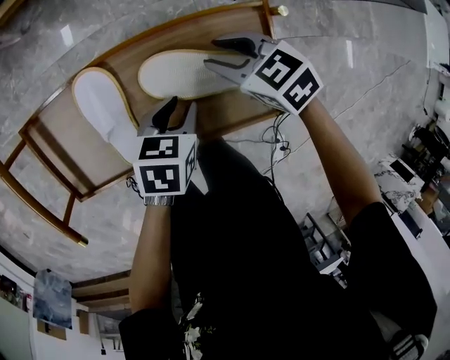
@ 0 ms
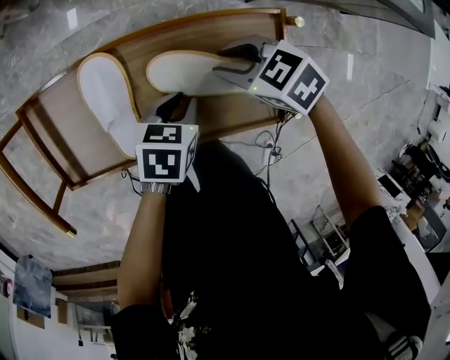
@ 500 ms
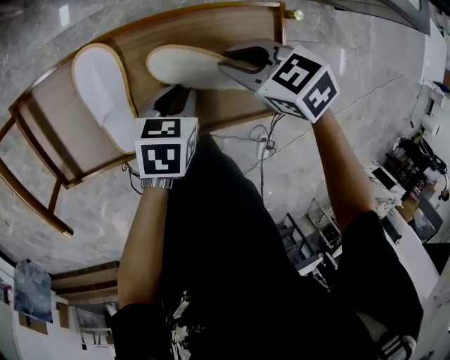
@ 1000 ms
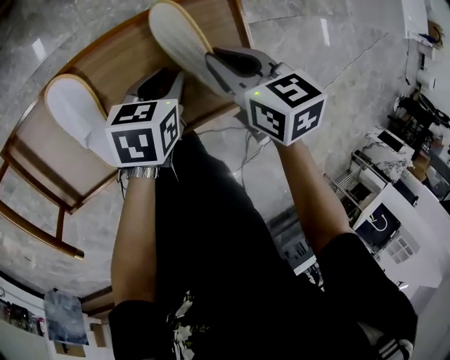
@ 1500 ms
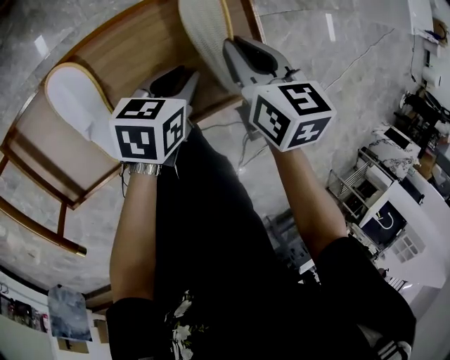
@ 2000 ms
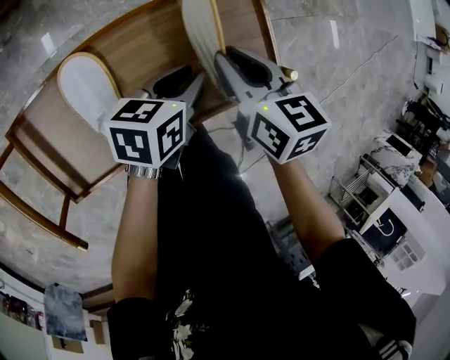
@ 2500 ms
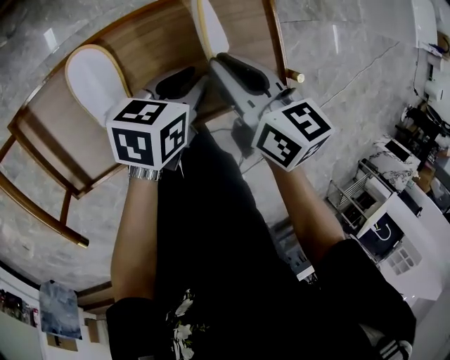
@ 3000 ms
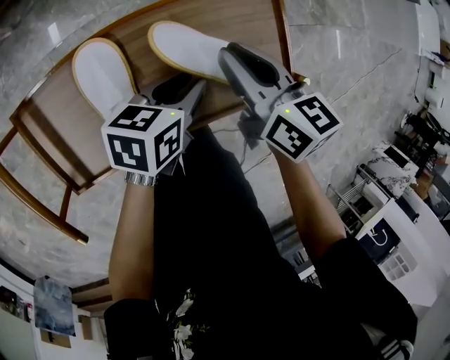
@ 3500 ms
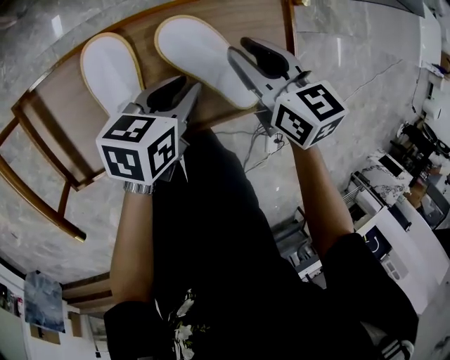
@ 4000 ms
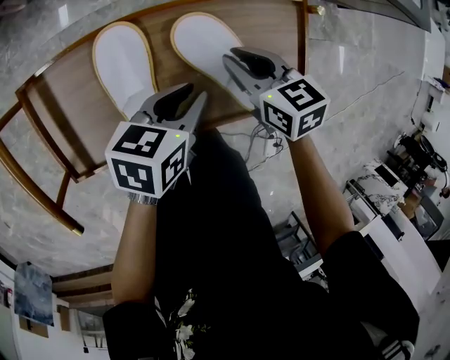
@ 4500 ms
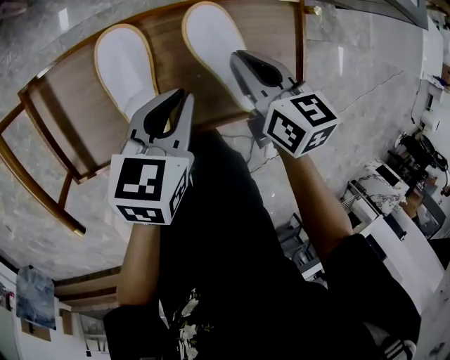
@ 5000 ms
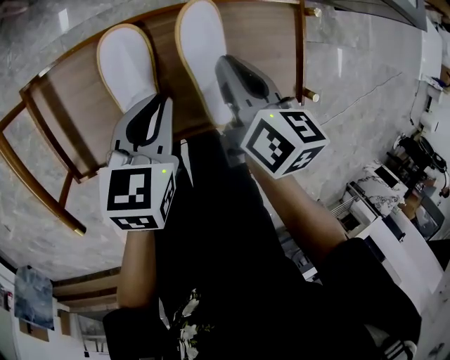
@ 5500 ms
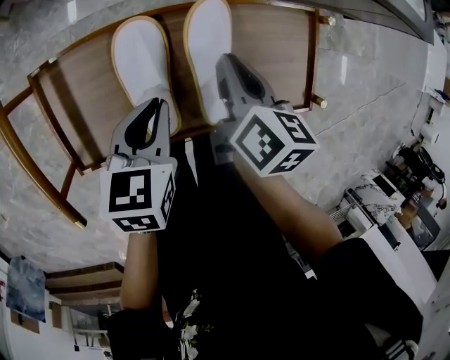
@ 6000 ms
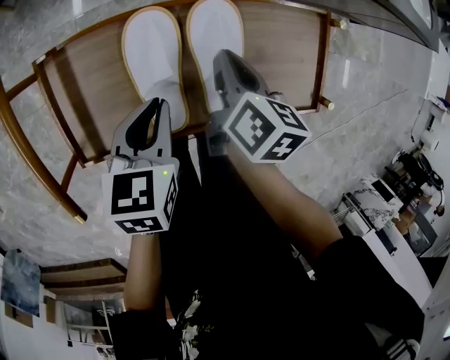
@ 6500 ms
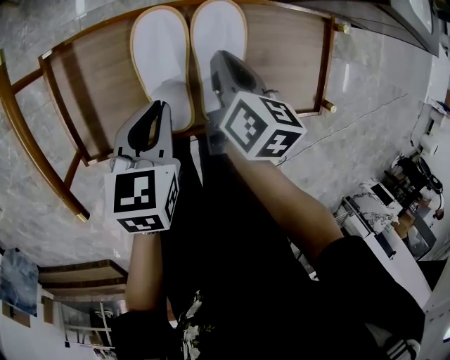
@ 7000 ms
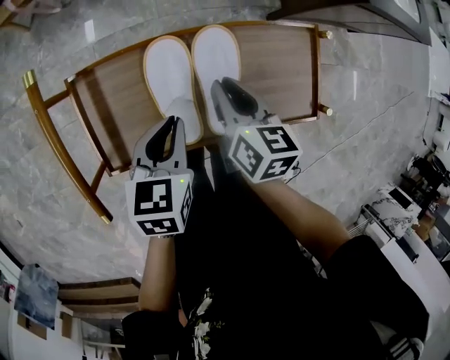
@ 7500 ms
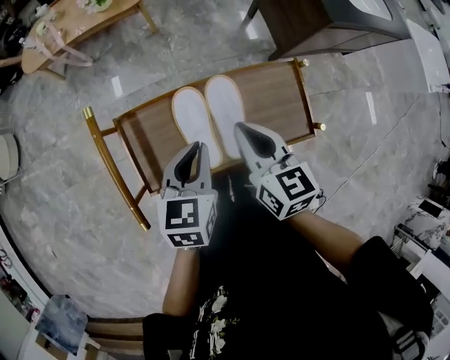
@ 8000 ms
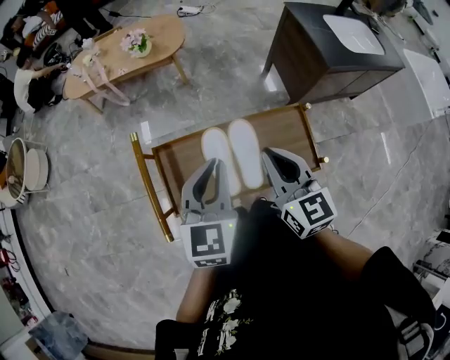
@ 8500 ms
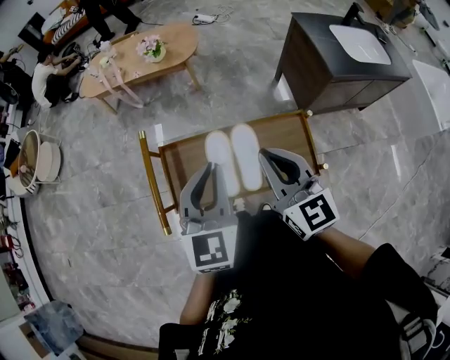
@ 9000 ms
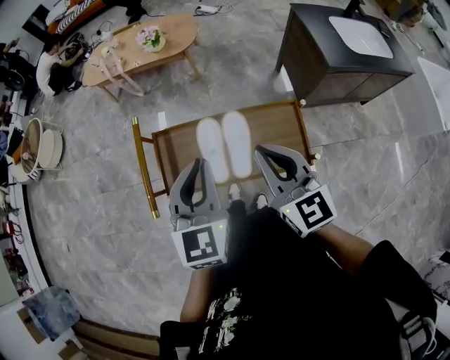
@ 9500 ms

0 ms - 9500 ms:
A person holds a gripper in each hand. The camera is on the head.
0 ms - 2000 ms: The right gripper moves some 10 cm, swivels roughly 50 degrees, and closes.
2000 ms - 4000 ms: Both grippers move to the left, approximately 5 cm. The right gripper turns by about 20 degrees.
4000 ms - 5500 ms: The right gripper moves roughly 5 cm, turns by approximately 20 degrees, and closes. Meanwhile the left gripper travels to the left by roughly 10 cm, and changes its angle by roughly 20 degrees.
5500 ms - 7500 ms: The left gripper changes place by some 5 cm, while the right gripper is displaced to the left by about 5 cm.
7500 ms - 9500 ms: The grippers both shift upward by roughly 30 cm. The left gripper turns by approximately 40 degrees; the right gripper rotates some 50 degrees.

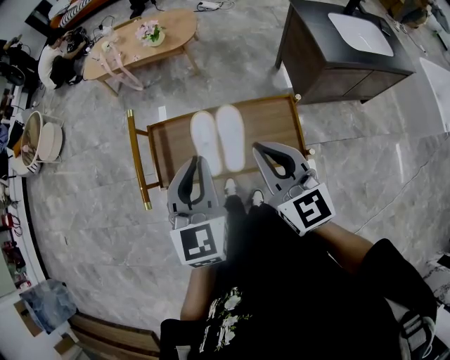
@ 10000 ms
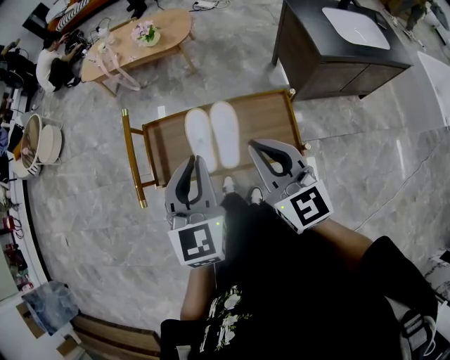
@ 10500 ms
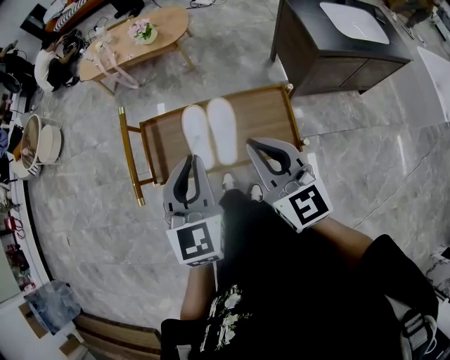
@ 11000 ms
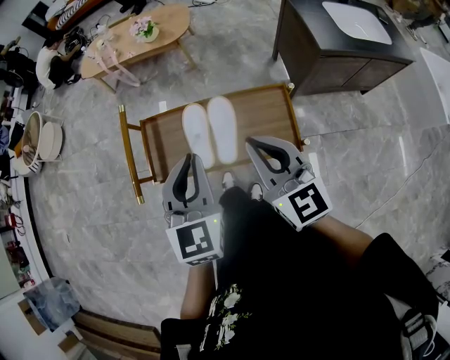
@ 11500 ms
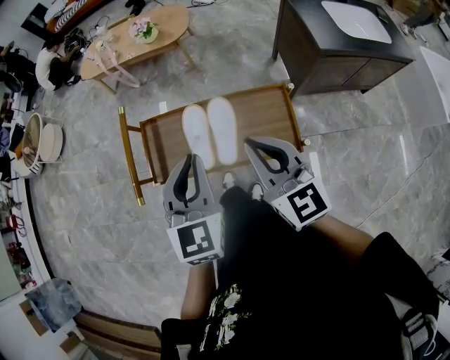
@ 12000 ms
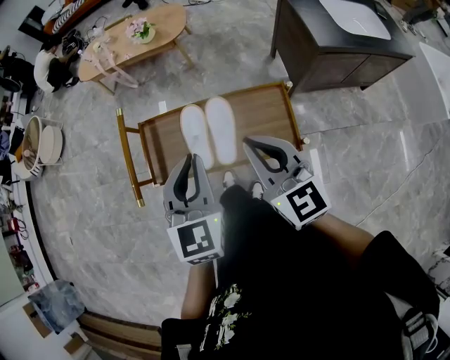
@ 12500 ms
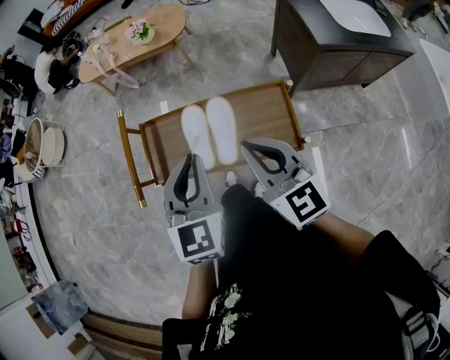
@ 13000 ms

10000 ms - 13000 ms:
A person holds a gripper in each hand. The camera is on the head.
10000 ms - 11500 ms: There are only small adjustments of the grippers.
11500 ms - 13000 ms: Both grippers stay put.

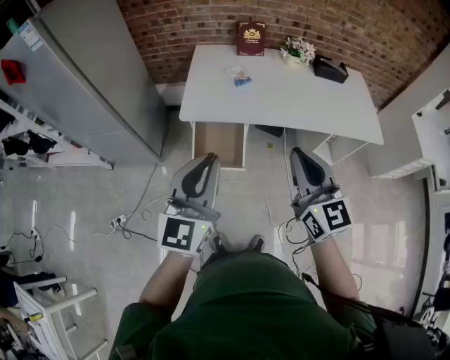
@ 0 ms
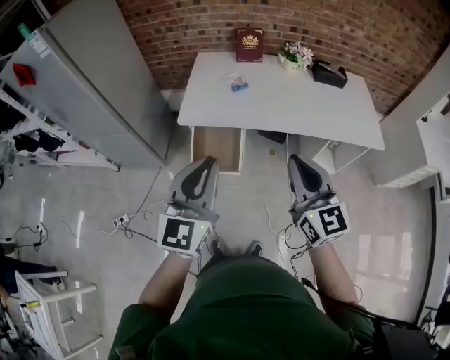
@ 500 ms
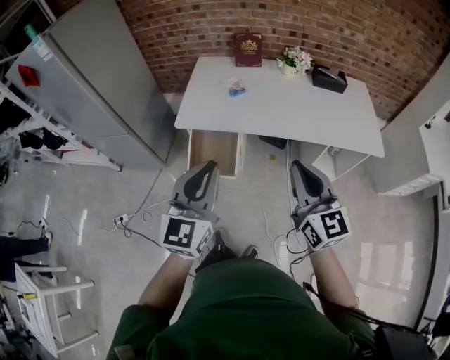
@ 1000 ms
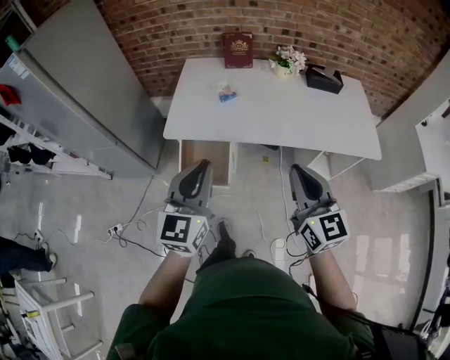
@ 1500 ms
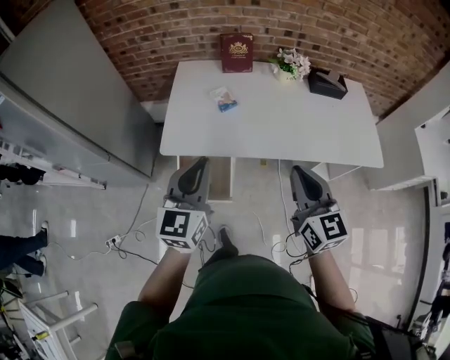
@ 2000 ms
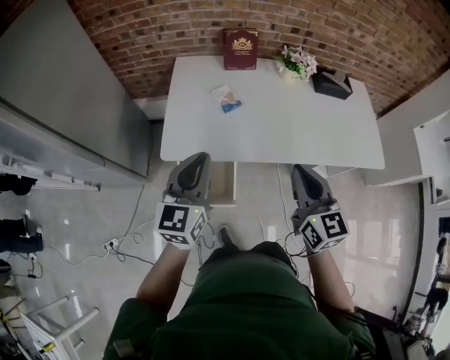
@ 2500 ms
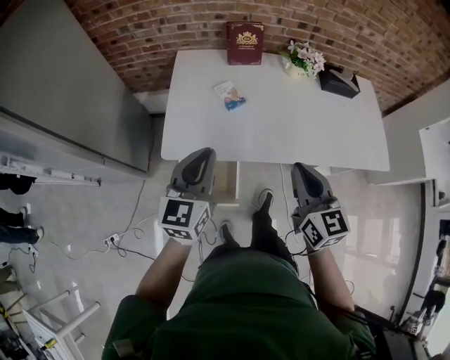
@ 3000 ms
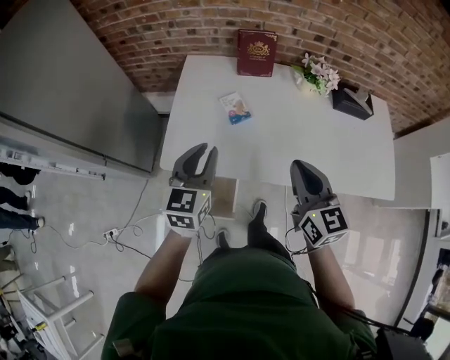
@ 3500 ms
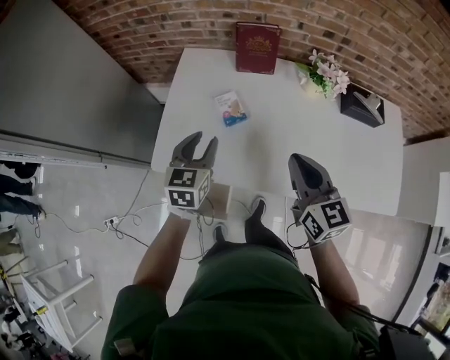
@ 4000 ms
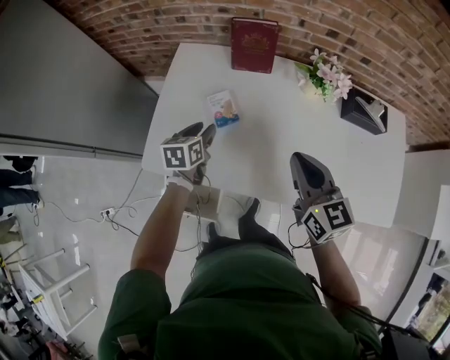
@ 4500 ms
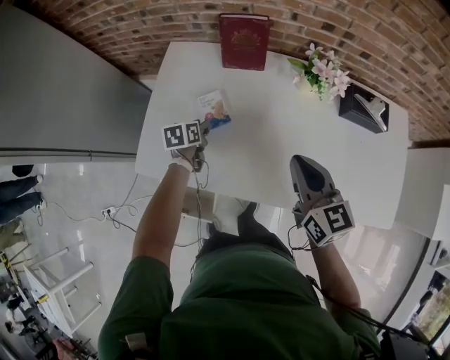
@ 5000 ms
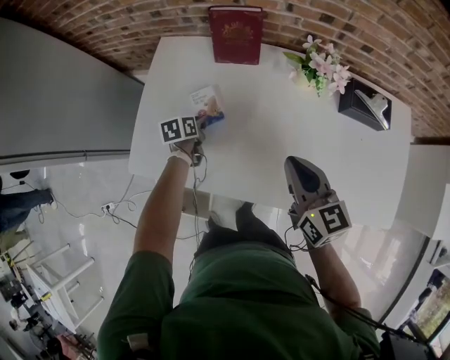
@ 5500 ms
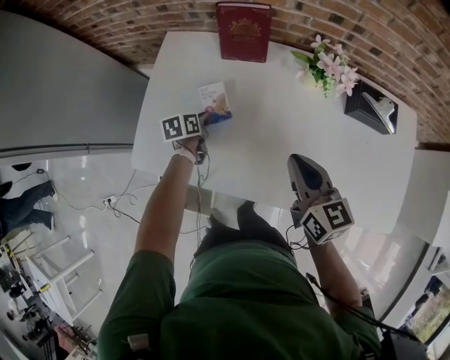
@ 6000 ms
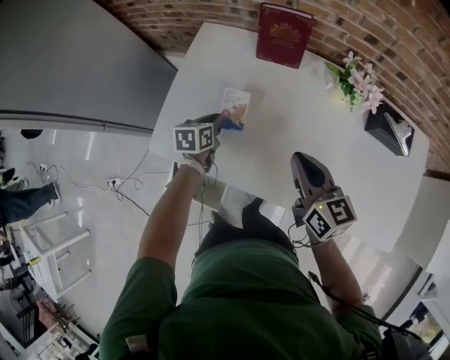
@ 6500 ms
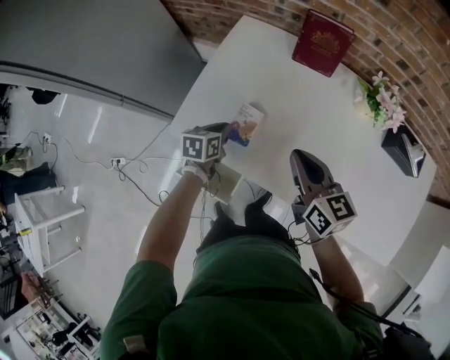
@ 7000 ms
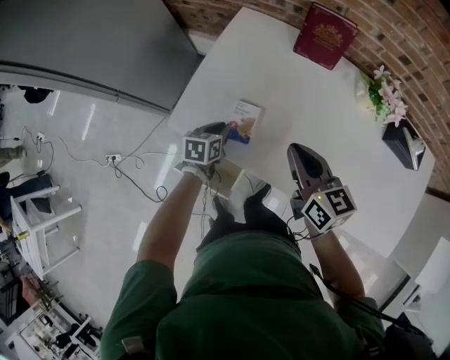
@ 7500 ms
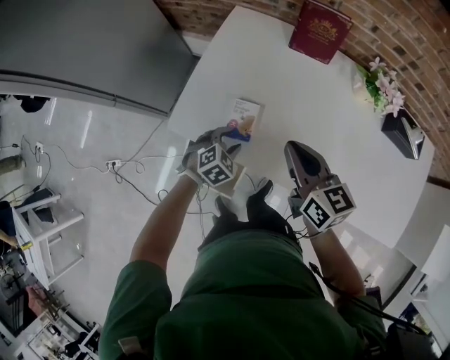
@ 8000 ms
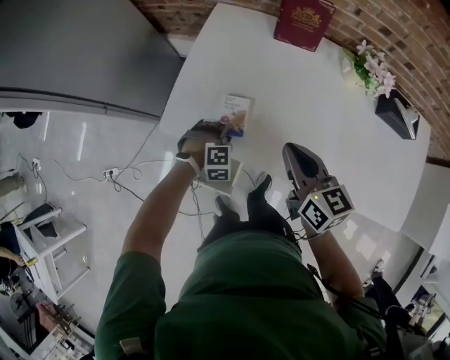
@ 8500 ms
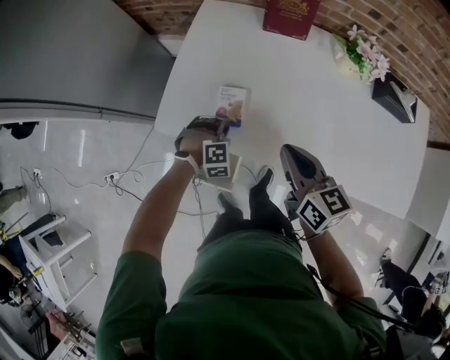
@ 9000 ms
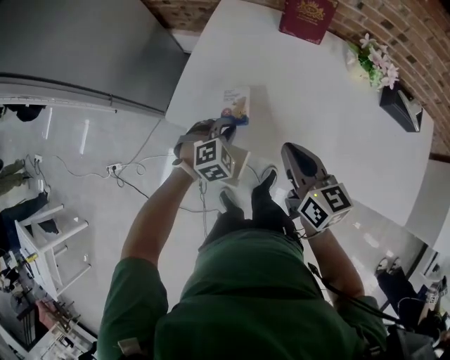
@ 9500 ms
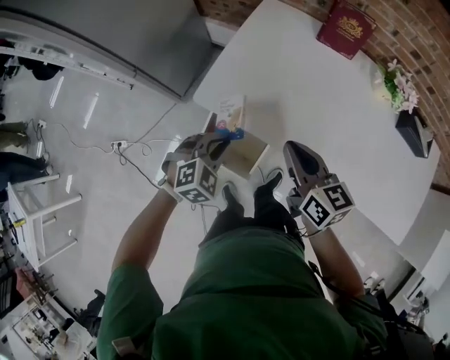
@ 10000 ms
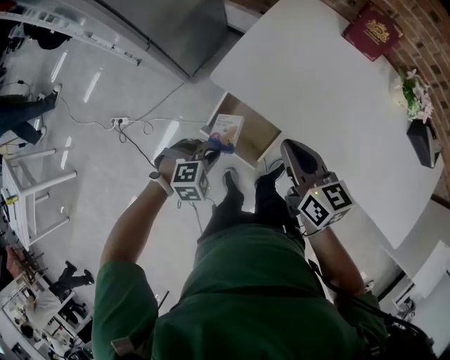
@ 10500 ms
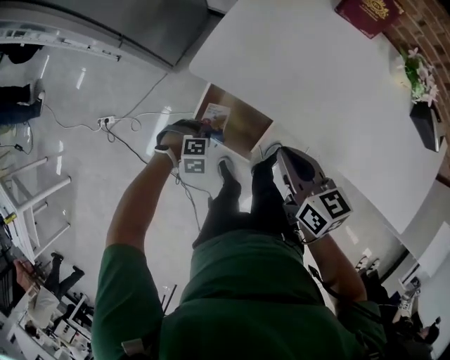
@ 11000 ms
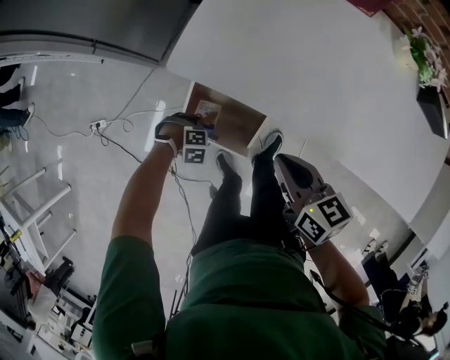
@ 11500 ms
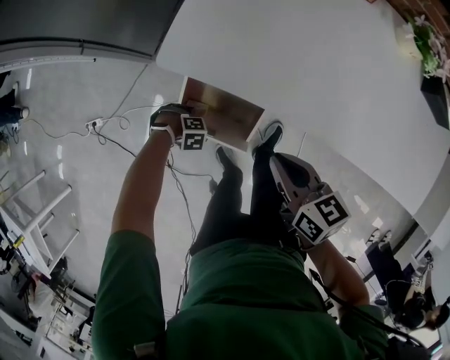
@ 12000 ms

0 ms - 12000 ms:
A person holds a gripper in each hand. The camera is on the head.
0 ms - 2000 ms: The left gripper is displaced forward by some 20 cm. Meanwhile the right gripper moves forward and to the right, about 15 cm.
2000 ms - 4000 ms: The left gripper goes approximately 30 cm forward and downward, swivels some 30 degrees, and opens its fingers. Meanwhile the right gripper moves forward, about 25 cm.
4000 ms - 6000 ms: The left gripper moves downward and forward, approximately 25 cm, rotates roughly 40 degrees, and closes, while the right gripper heads to the right, downward and forward, covering about 15 cm.
6000 ms - 8000 ms: The right gripper moves to the left, some 20 cm; the left gripper goes some 20 cm backward and to the left, rolls clockwise, seen from behind, by roughly 60 degrees, and opens its fingers.
8000 ms - 10000 ms: The left gripper travels backward, upward and to the left by approximately 15 cm, and closes. The right gripper shifts about 10 cm to the left and backward.
10000 ms - 12000 ms: The left gripper moves downward, approximately 35 cm, and swivels some 60 degrees. Meanwhile the right gripper heads downward, covering some 15 cm.

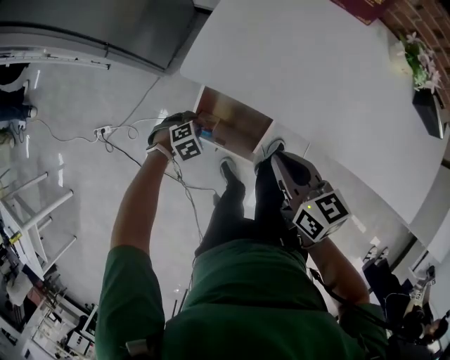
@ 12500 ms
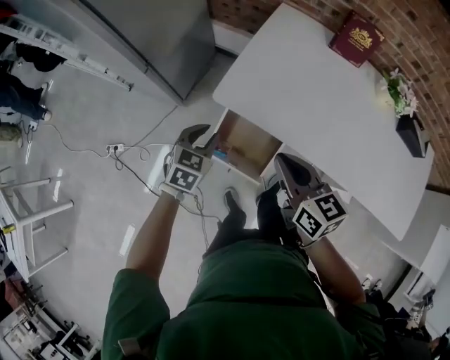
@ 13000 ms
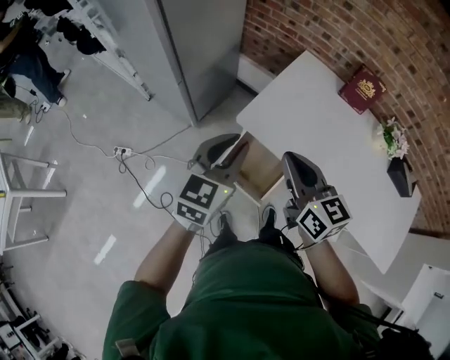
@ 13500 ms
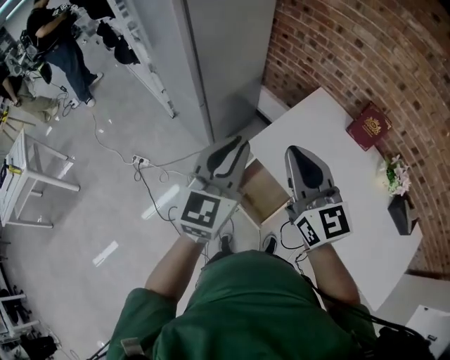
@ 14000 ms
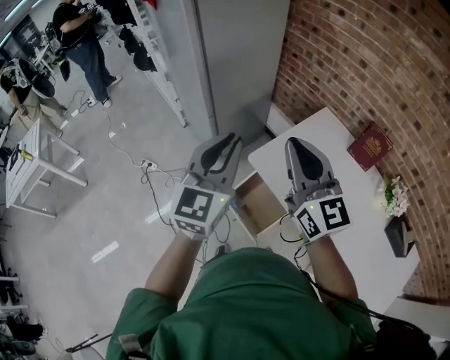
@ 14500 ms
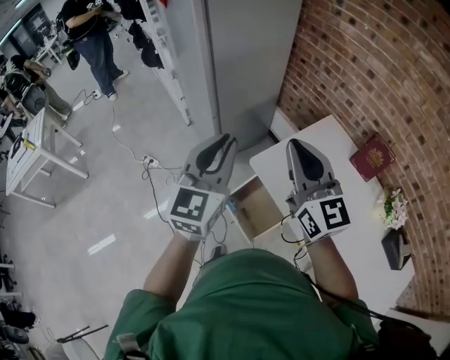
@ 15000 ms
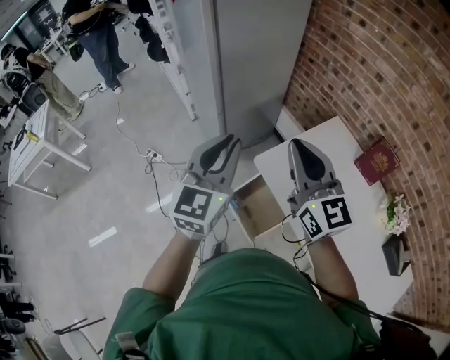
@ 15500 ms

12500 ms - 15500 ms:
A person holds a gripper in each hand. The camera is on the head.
12500 ms - 14000 ms: The right gripper is displaced upward by approximately 35 cm, and tilts its fingers roughly 30 degrees upward. The left gripper heads upward, covering approximately 60 cm, points its fingers some 80 degrees further upward, and closes up.
14000 ms - 15500 ms: The right gripper shifts by approximately 5 cm.
